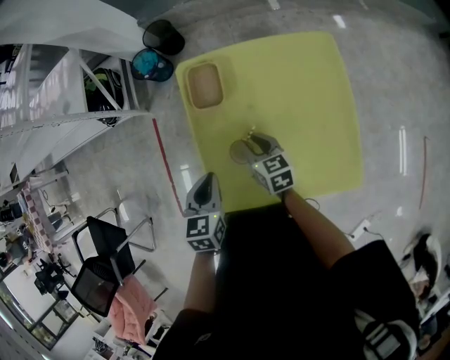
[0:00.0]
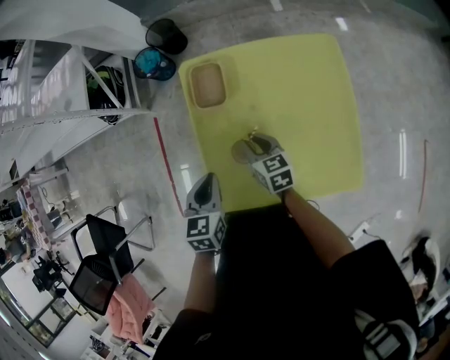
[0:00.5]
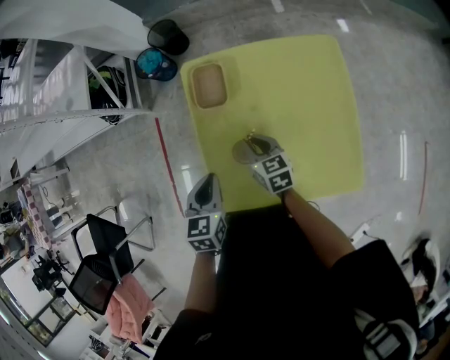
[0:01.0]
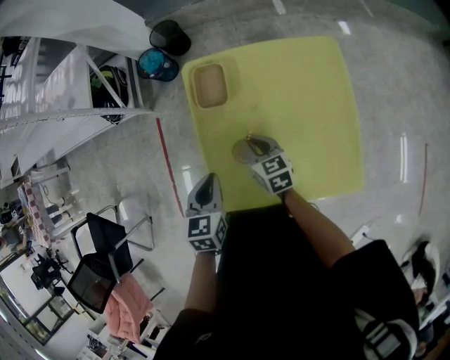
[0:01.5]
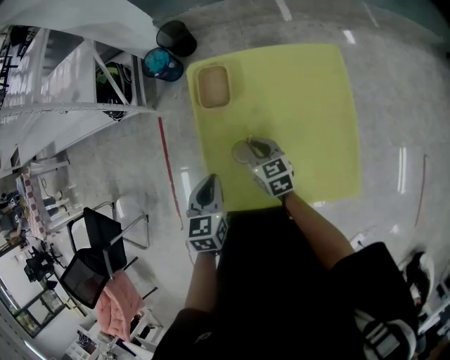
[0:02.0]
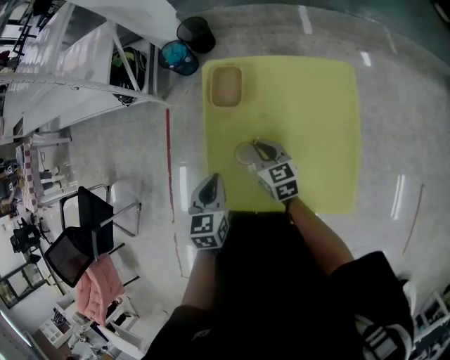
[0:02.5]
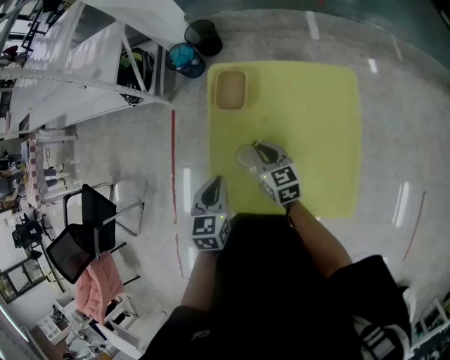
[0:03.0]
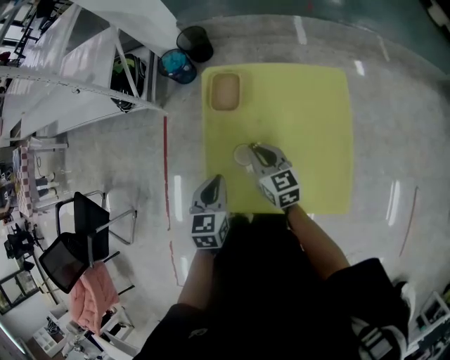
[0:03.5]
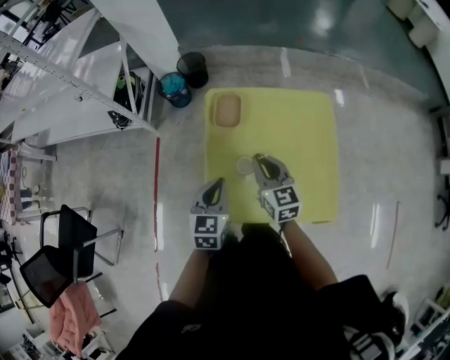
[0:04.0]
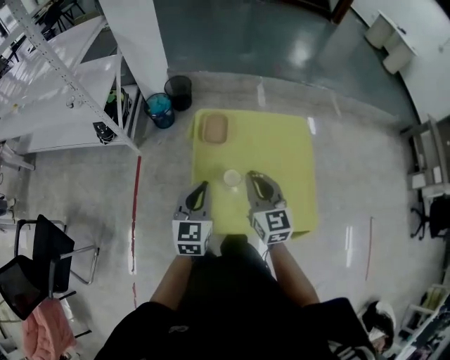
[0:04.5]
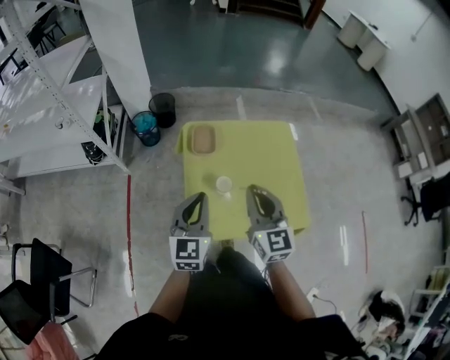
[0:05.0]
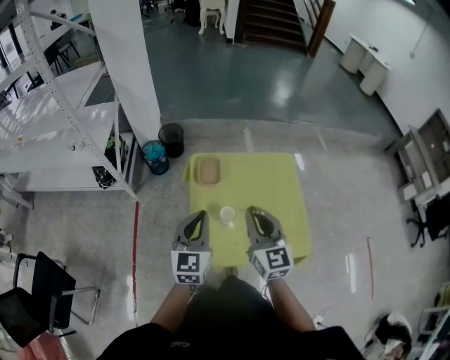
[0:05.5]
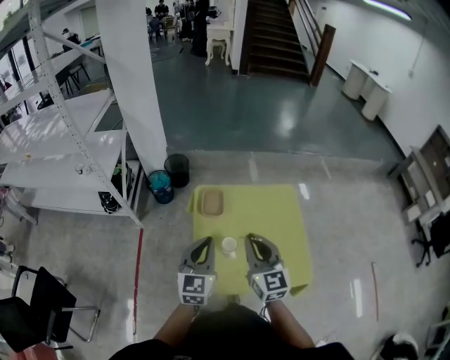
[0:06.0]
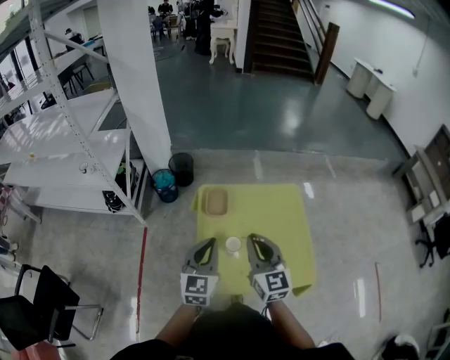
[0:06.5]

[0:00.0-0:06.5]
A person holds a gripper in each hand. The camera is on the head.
0:00.0 to 0:02.0: The grippers stay close to where they were, moving slightly.
0:02.0 to 0:04.5: The right gripper moves upward and backward, about 25 cm, and swivels about 30 degrees; the left gripper goes roughly 15 cm upward, and rotates about 30 degrees.
0:04.5 to 0:06.5: Both grippers travel together upward, about 10 cm.

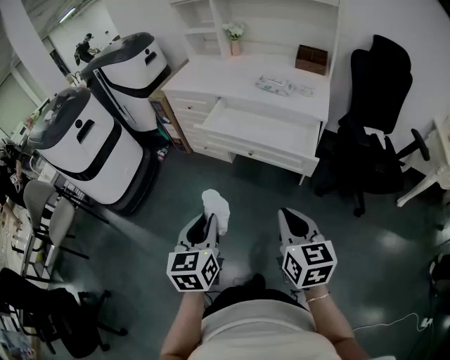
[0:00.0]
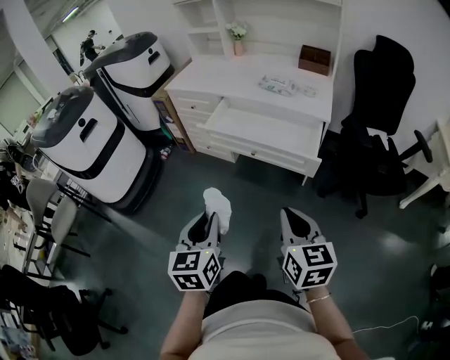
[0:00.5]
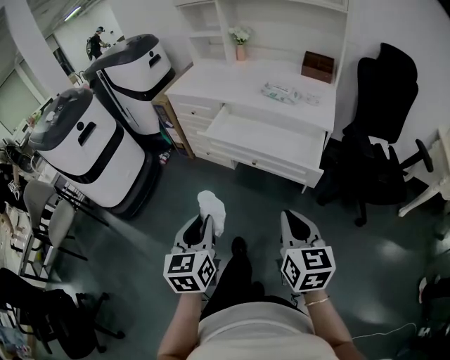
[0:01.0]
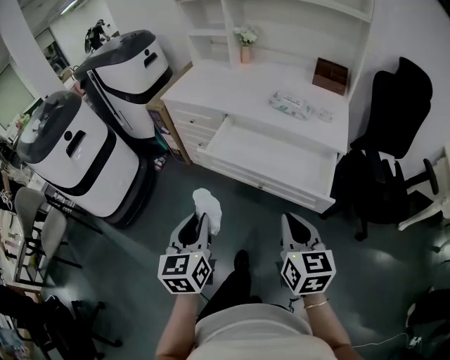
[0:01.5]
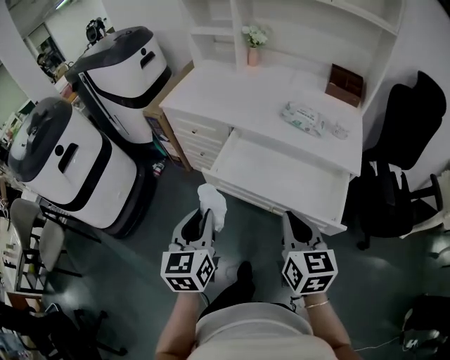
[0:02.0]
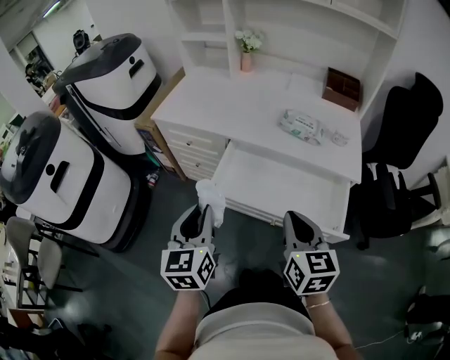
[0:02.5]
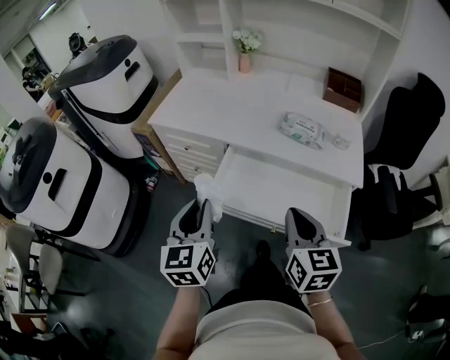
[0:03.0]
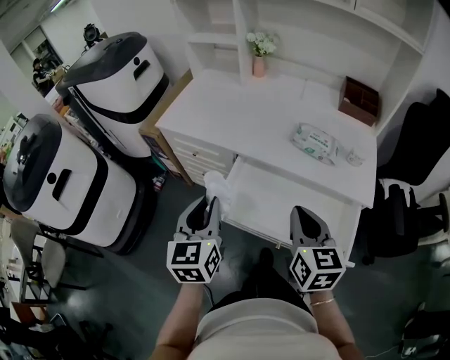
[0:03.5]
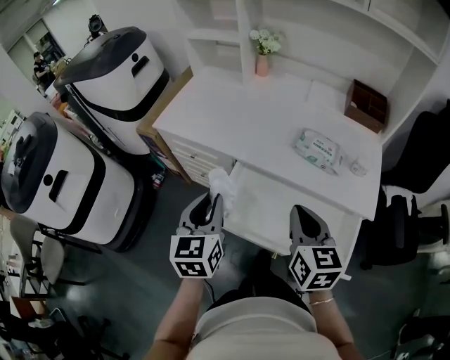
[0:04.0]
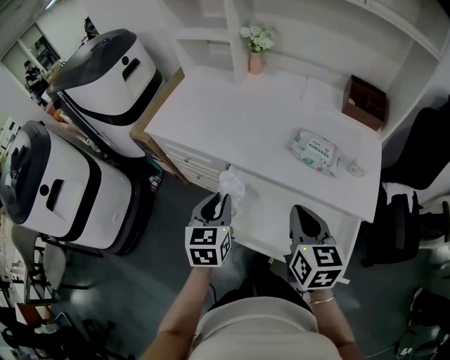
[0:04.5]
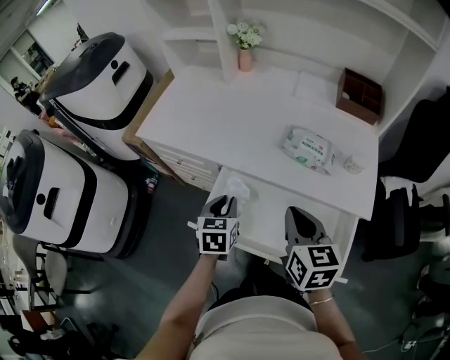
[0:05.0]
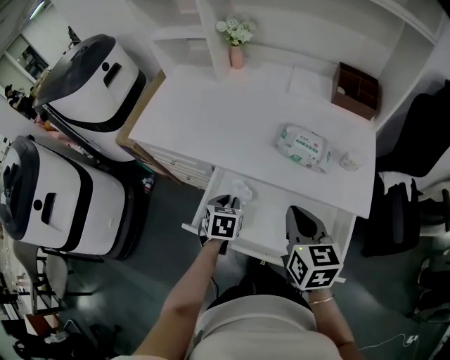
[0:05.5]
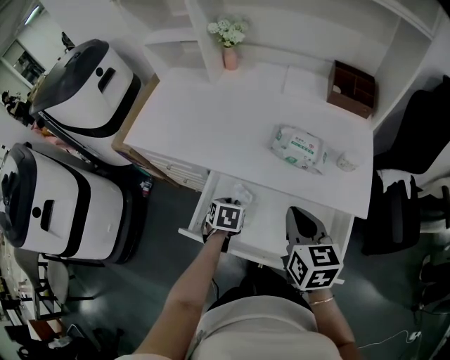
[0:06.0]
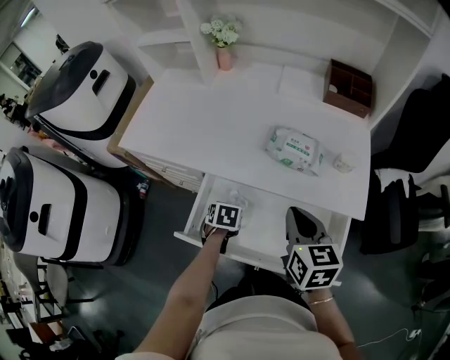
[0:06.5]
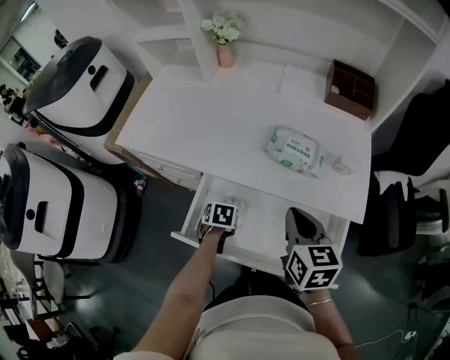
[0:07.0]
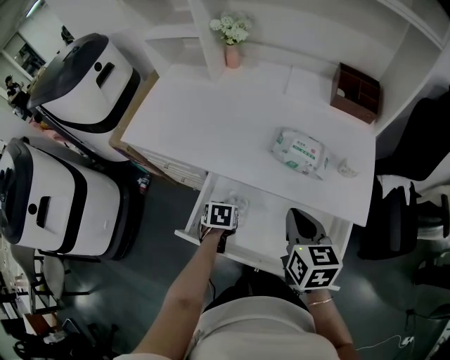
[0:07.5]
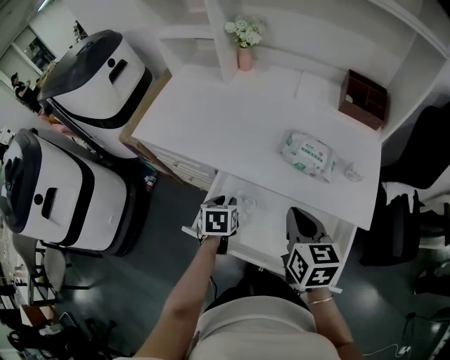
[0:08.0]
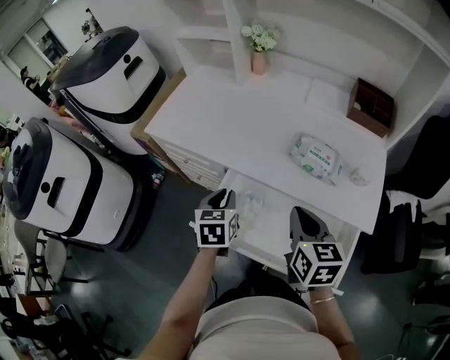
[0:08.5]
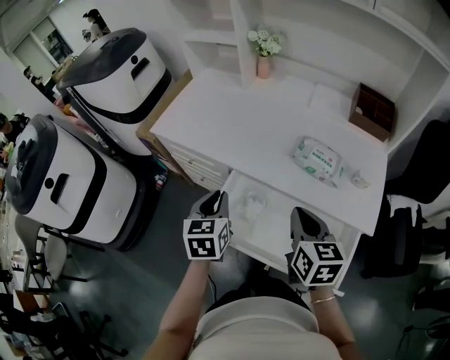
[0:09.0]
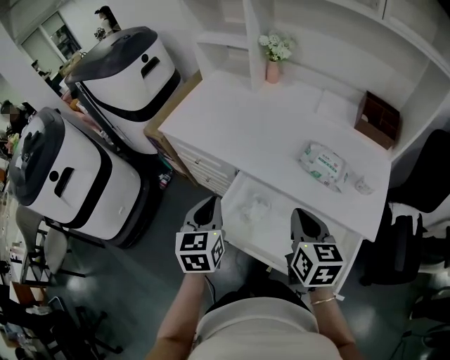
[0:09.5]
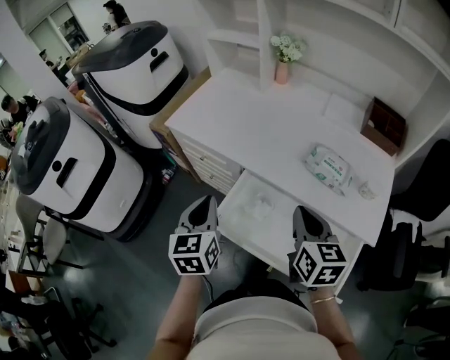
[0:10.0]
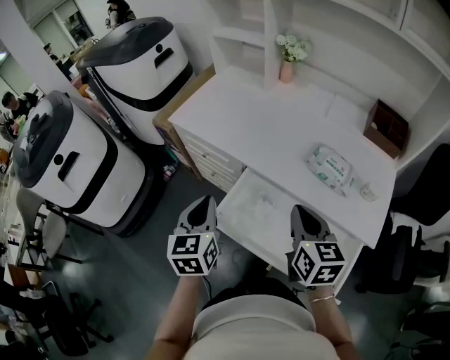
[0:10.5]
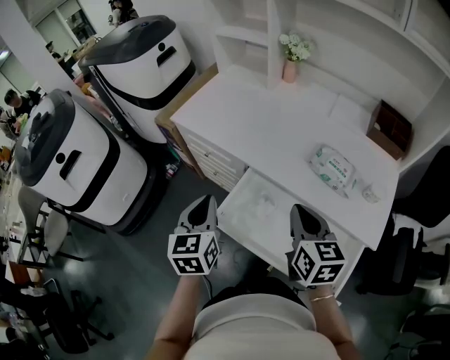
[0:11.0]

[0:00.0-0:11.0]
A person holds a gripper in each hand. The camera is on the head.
0:00.0 to 0:02.0: The two grippers go roughly 30 cm forward.
0:02.0 to 0:03.5: The two grippers go about 15 cm forward.
0:03.5 to 0:05.5: The right gripper goes approximately 10 cm forward and to the right. Meanwhile the left gripper goes about 25 cm downward, forward and to the right, and angles its fingers downward, by approximately 40 degrees.
0:05.5 to 0:07.5: The left gripper is displaced downward by approximately 10 cm.
0:07.5 to 0:09.0: The left gripper is displaced upward by about 20 cm, and tilts its fingers approximately 40 degrees upward.
0:09.0 to 0:11.0: The left gripper moves to the left, some 5 cm.

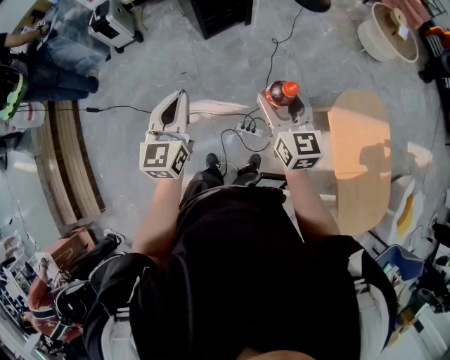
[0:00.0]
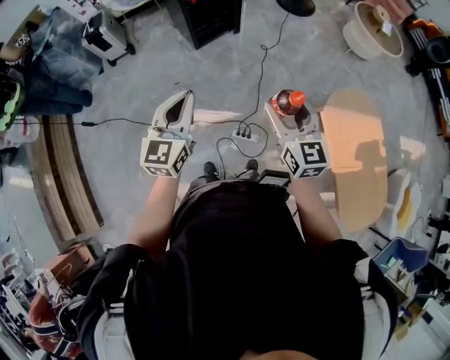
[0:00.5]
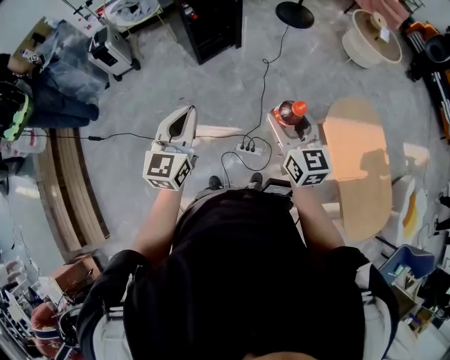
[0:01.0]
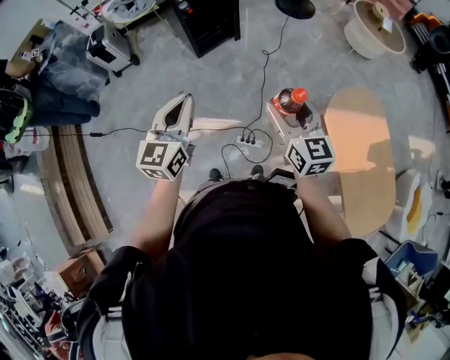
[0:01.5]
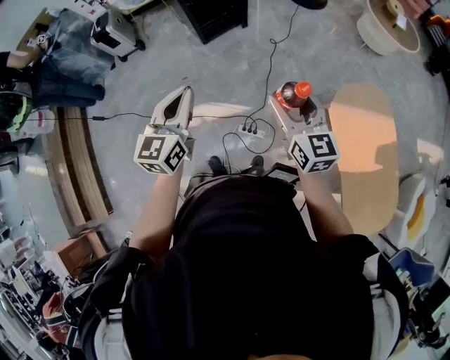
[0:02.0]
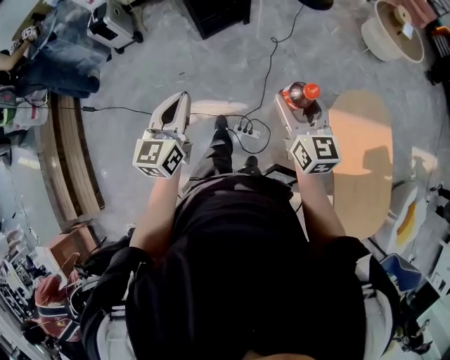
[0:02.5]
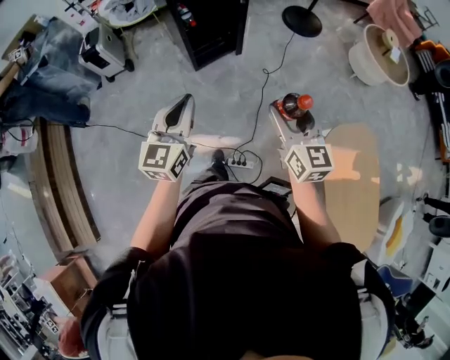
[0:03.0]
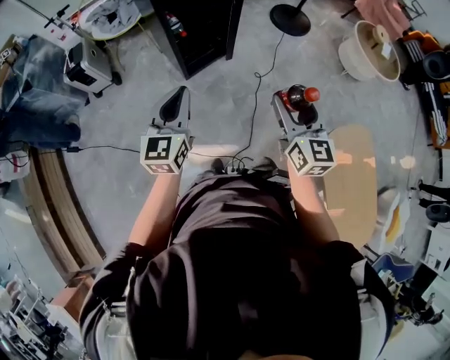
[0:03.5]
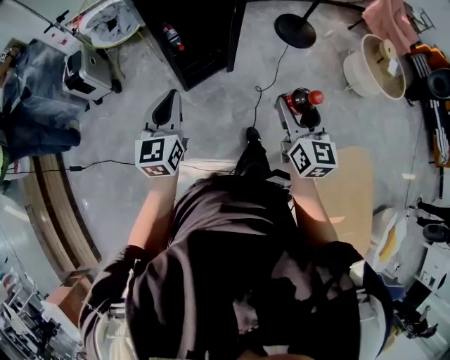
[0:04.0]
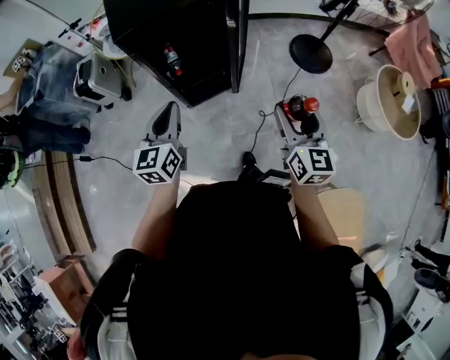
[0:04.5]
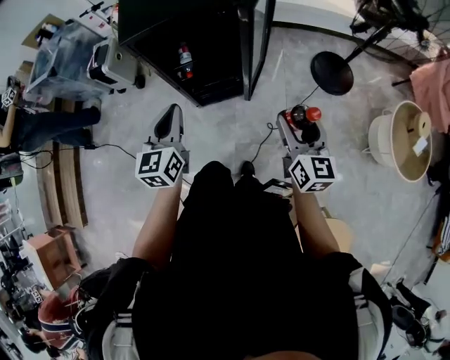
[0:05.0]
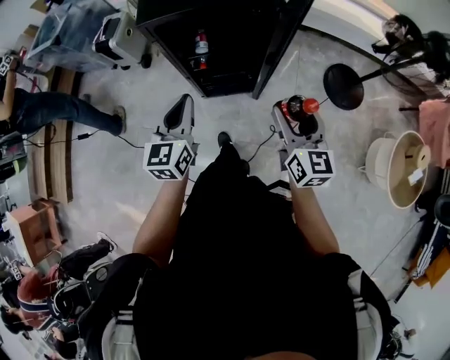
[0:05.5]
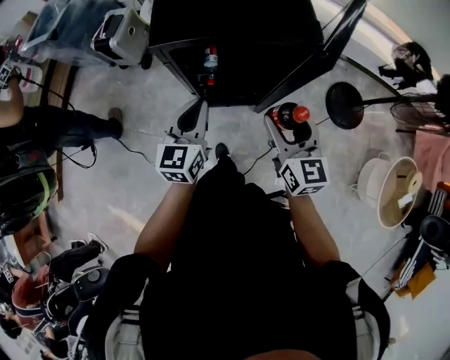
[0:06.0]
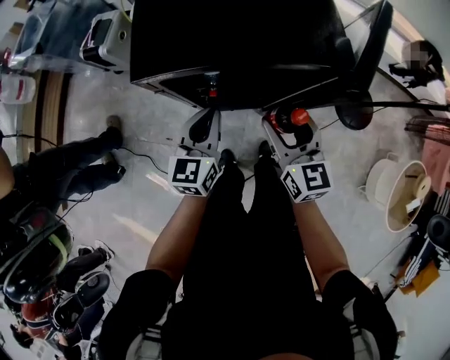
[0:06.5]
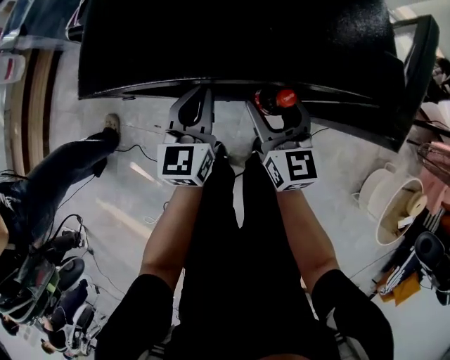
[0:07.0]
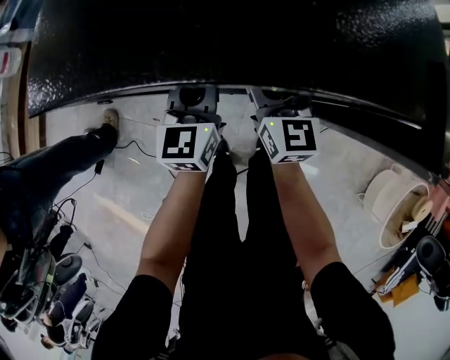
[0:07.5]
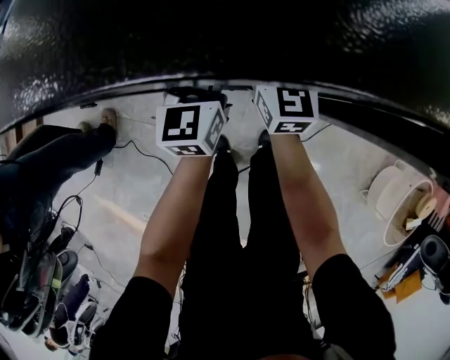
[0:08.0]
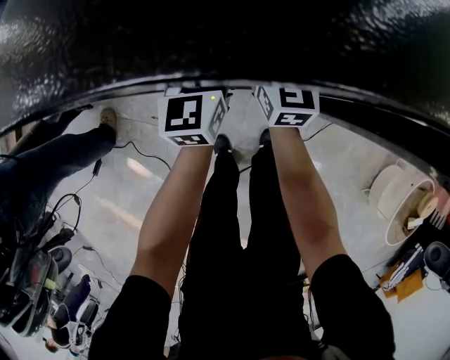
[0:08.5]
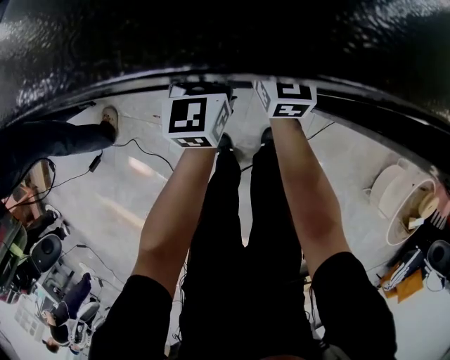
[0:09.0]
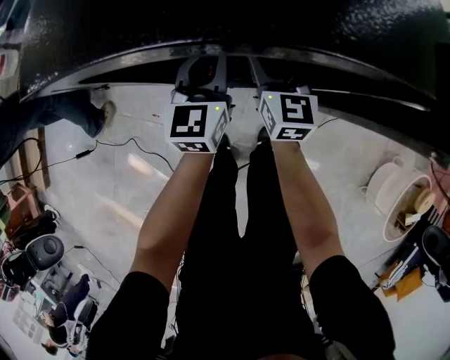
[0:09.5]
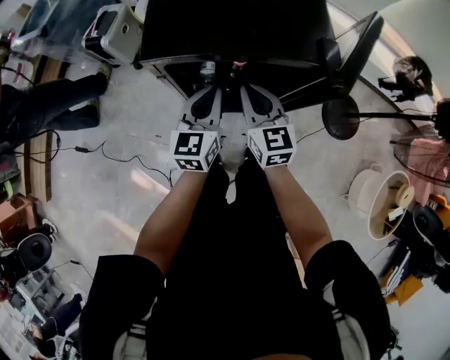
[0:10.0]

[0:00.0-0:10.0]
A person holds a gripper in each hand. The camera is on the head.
0:00.0 to 0:02.0: The two grippers go about 10 cm to the right.
0:02.0 to 0:04.0: Both grippers move forward, roughly 40 cm.
0:04.0 to 0:06.0: The right gripper changes place by some 40 cm, and turns by roughly 40 degrees; the left gripper ends up approximately 30 cm from where it was, and swivels about 30 degrees.
0:06.0 to 0:08.0: The grippers both shift forward and downward by approximately 30 cm.
0:08.0 to 0:10.0: The grippers both shift upward and backward by some 20 cm. The right gripper closes up.
